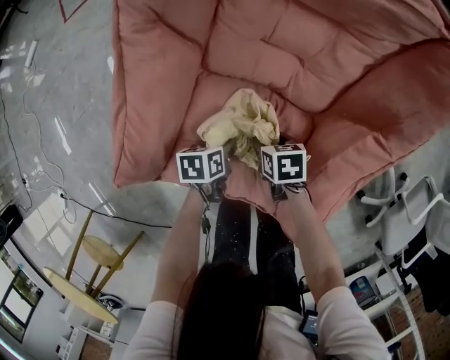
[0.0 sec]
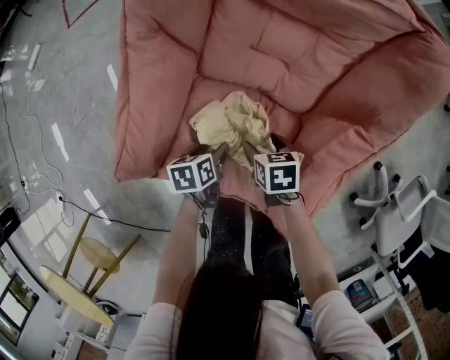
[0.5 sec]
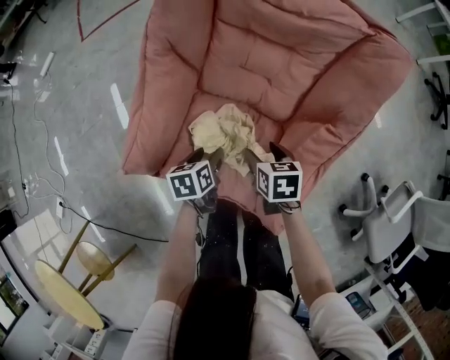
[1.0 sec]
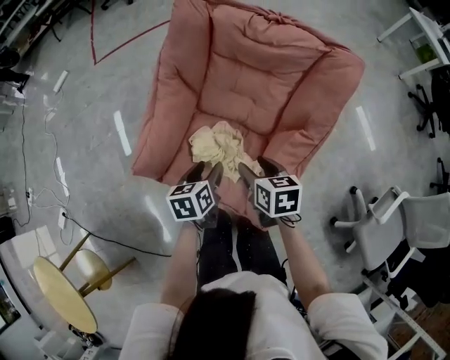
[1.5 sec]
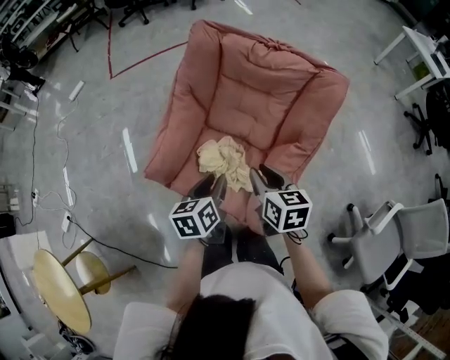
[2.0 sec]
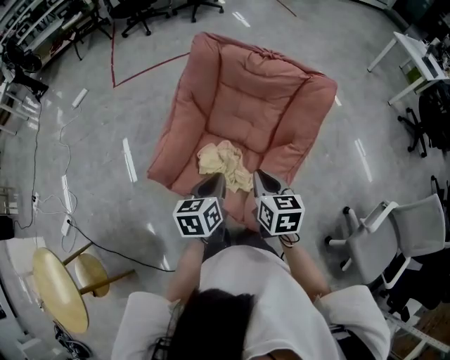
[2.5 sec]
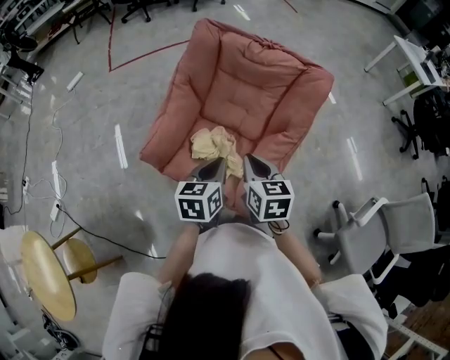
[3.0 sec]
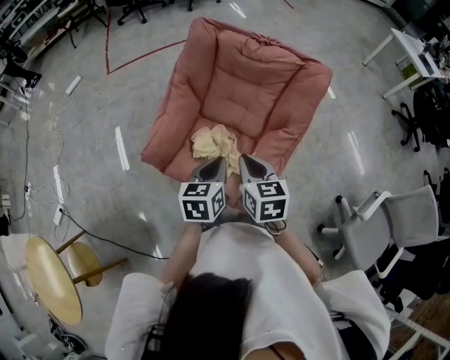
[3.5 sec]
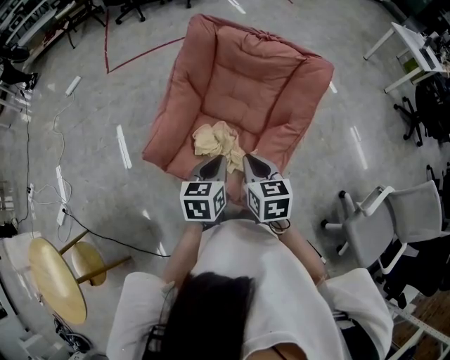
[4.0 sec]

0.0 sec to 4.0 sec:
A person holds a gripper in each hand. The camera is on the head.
0.0 sec to 2.0 sec: The grippers both shift upward by roughly 40 cm. The right gripper tips its fingers upward by some 30 degrees; the left gripper turns by approximately 40 degrees, and opens and closes again.
2.0 sec to 4.0 sec: The right gripper goes roughly 5 cm backward, while the left gripper shifts by about 5 cm, and closes.

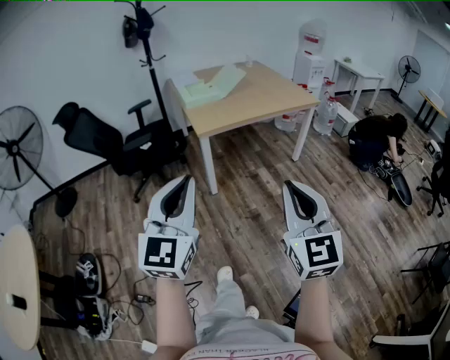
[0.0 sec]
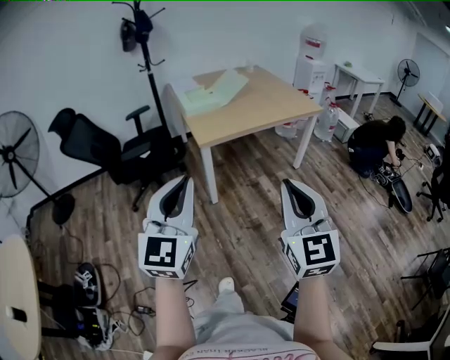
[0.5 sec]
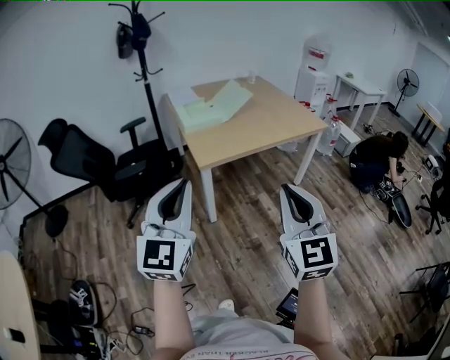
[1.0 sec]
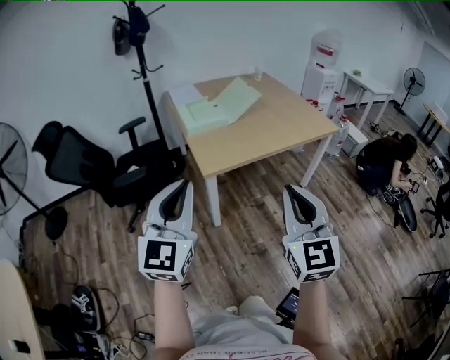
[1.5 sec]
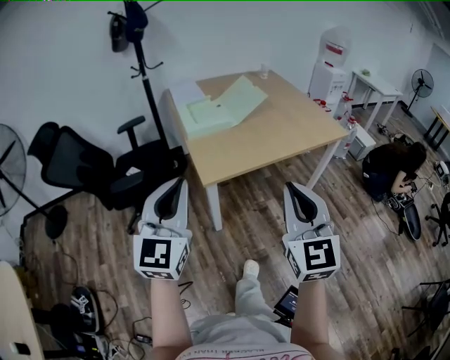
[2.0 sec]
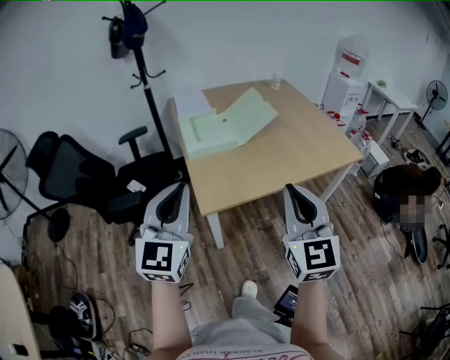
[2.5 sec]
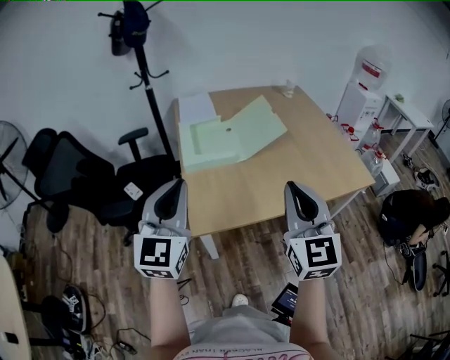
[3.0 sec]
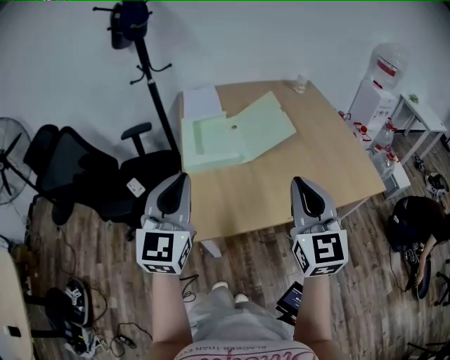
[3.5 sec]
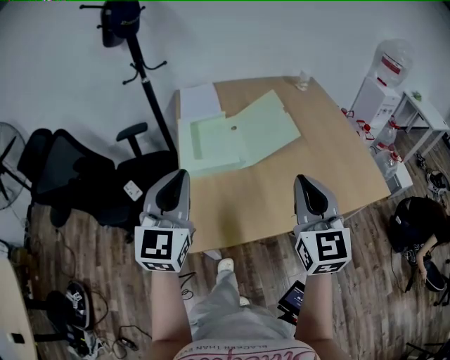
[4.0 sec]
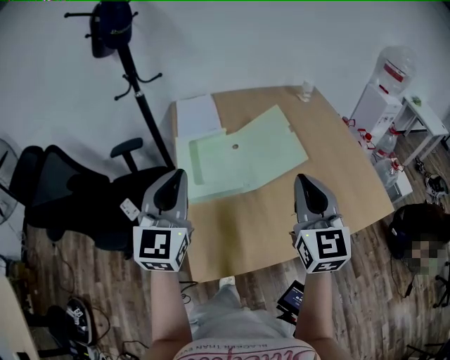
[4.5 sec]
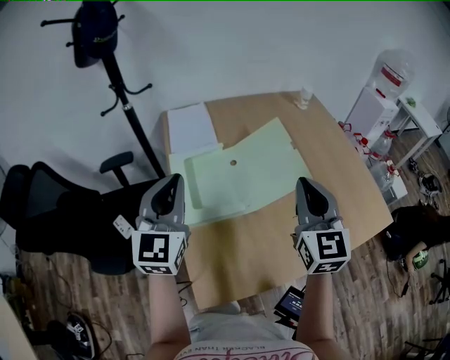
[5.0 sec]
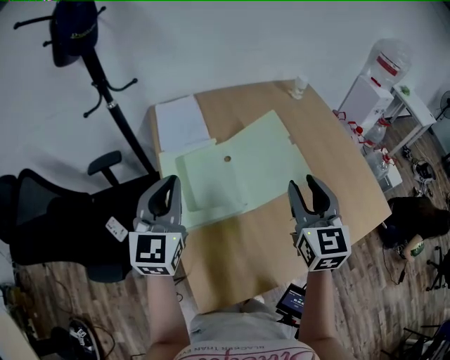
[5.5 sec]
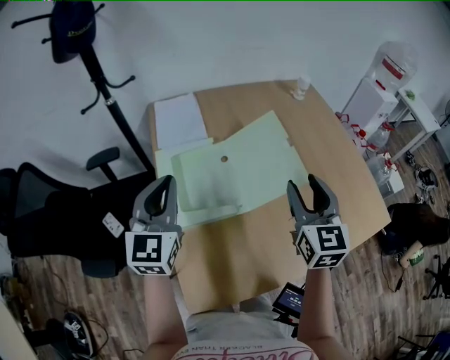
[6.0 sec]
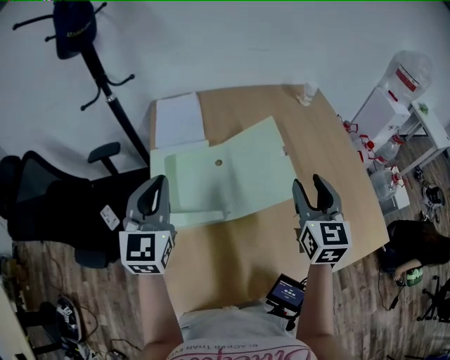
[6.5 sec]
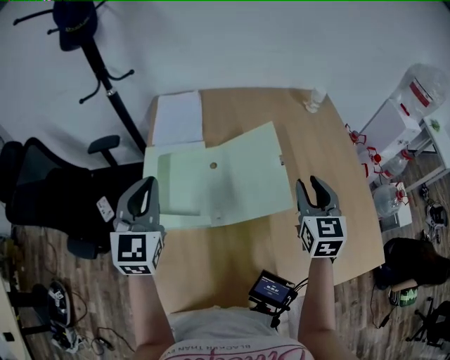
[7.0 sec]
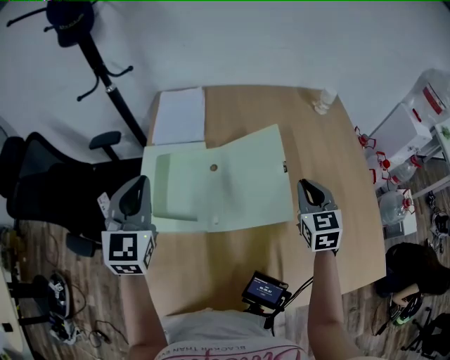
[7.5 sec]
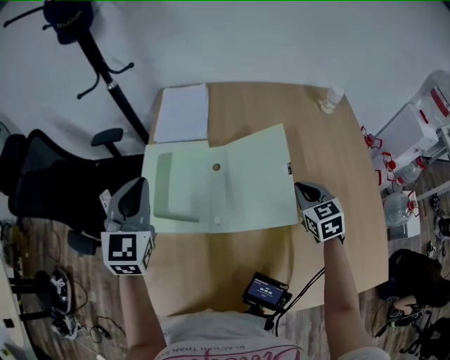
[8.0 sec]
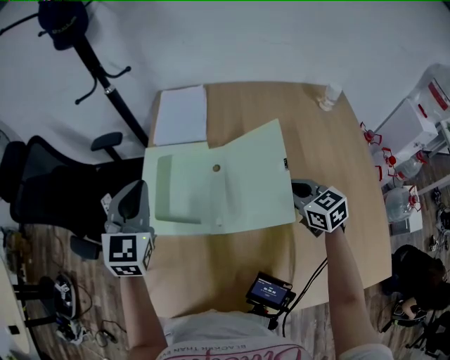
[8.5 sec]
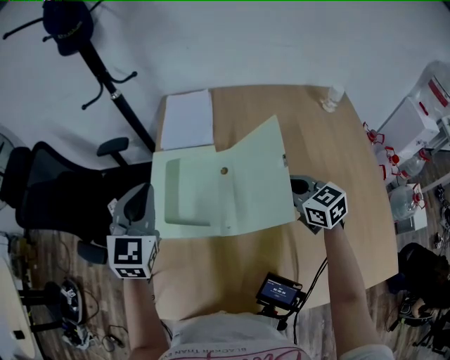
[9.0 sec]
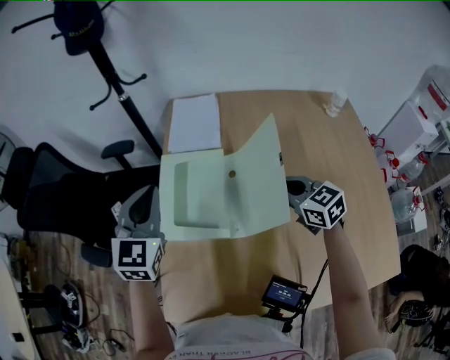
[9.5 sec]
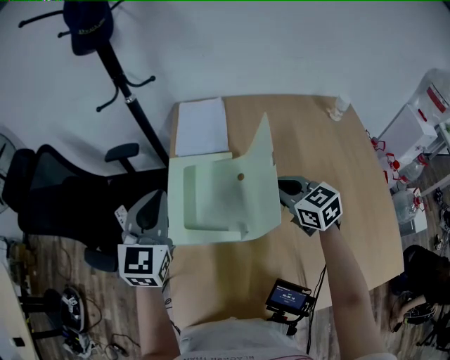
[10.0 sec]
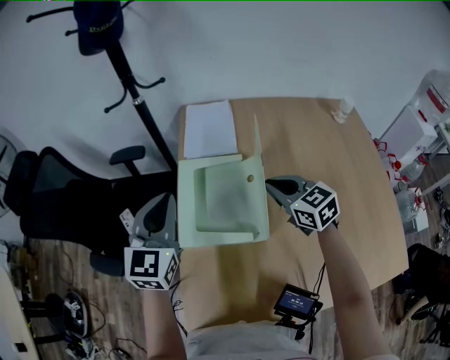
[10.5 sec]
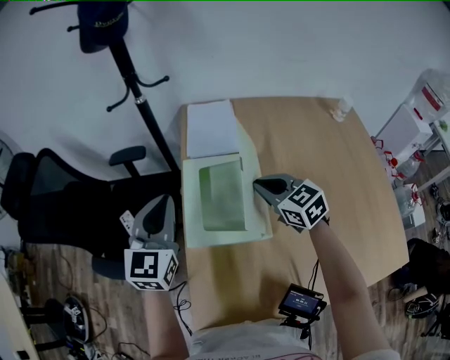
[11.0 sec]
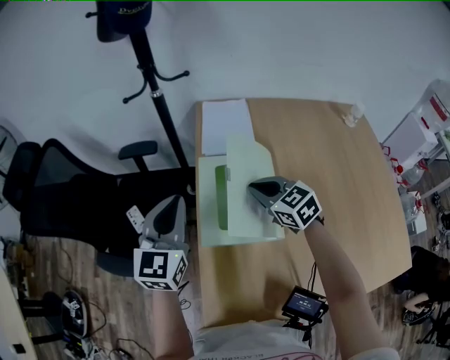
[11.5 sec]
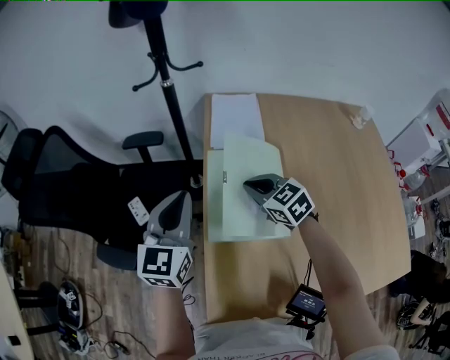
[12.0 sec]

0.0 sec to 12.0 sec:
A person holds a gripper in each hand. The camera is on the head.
0.0 sec to 2.0 sec: Both grippers travel together forward, approximately 35 cm.
2.0 sec to 4.0 sec: The grippers both shift forward by about 35 cm.
4.0 sec to 6.0 sec: Both grippers move forward, roughly 20 cm. The right gripper opens.
6.0 sec to 8.0 sec: The right gripper moves downward, forward and to the right, roughly 25 cm, rotates about 40 degrees, and closes its fingers, while the left gripper ends up about 5 cm from where it was, and swivels approximately 20 degrees.
8.0 sec to 10.0 sec: The right gripper shifts roughly 15 cm to the left, and swivels roughly 20 degrees.
10.0 sec to 12.0 sec: The left gripper is displaced to the left by about 10 cm, while the right gripper heads to the left, covering some 20 cm.

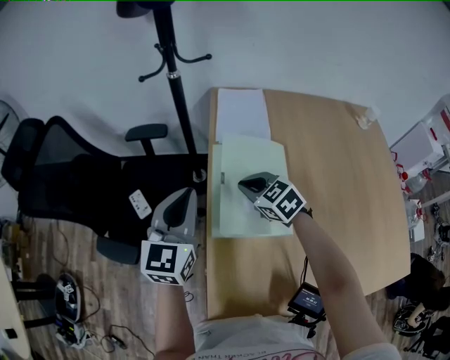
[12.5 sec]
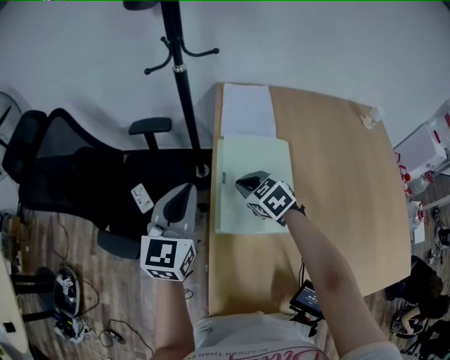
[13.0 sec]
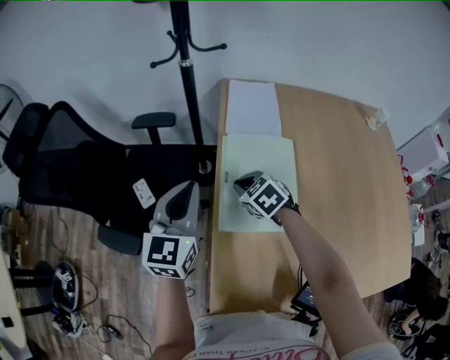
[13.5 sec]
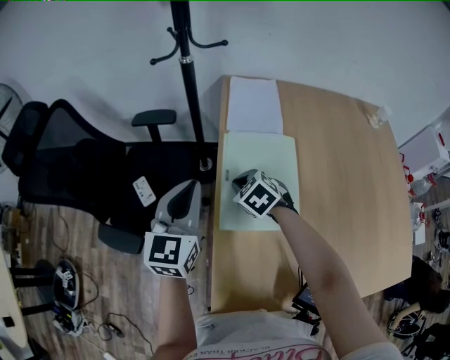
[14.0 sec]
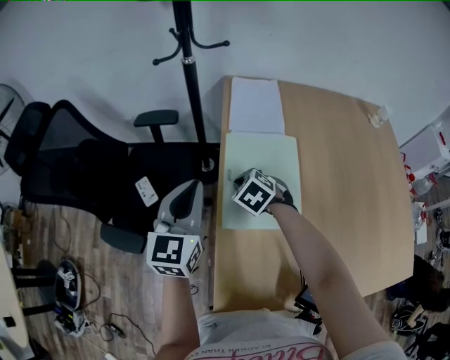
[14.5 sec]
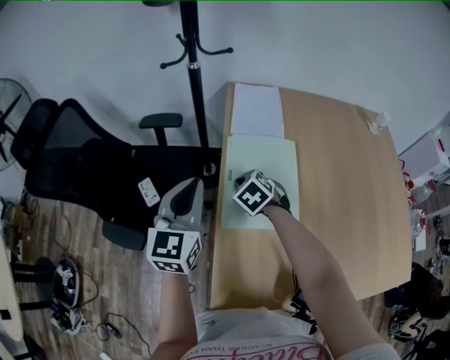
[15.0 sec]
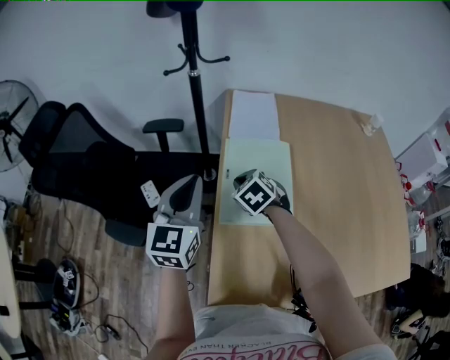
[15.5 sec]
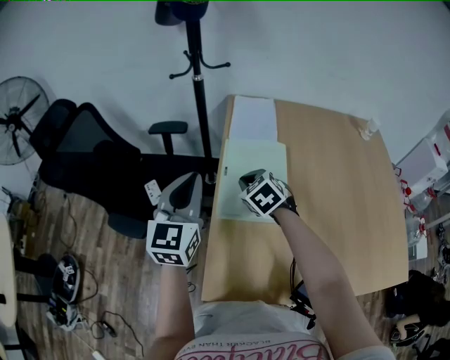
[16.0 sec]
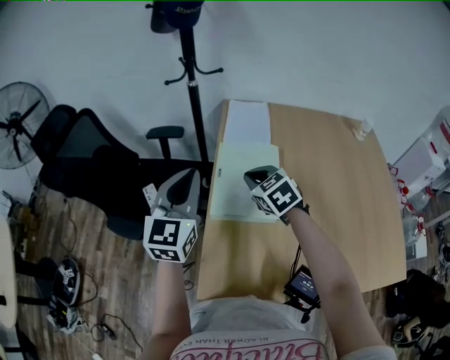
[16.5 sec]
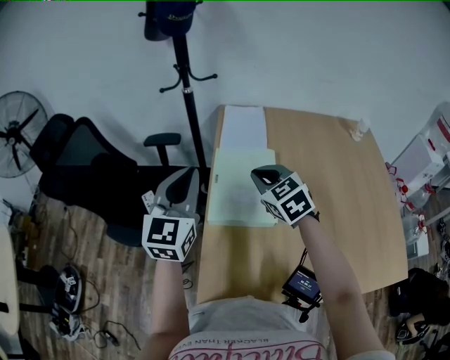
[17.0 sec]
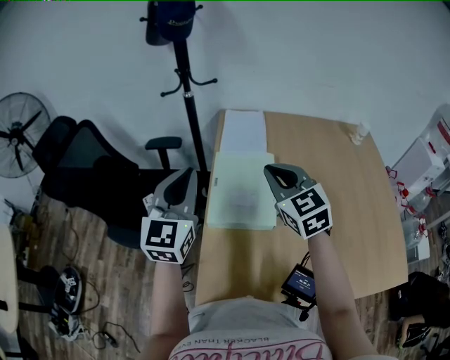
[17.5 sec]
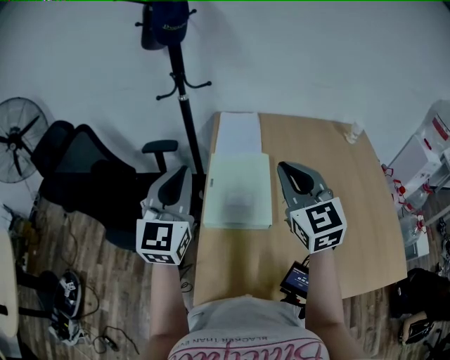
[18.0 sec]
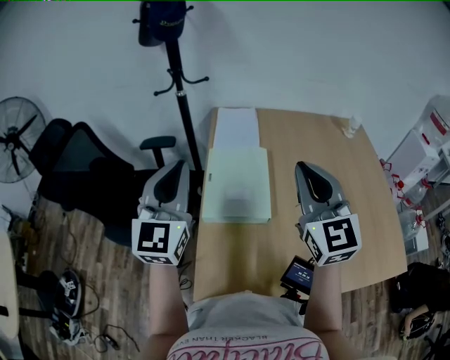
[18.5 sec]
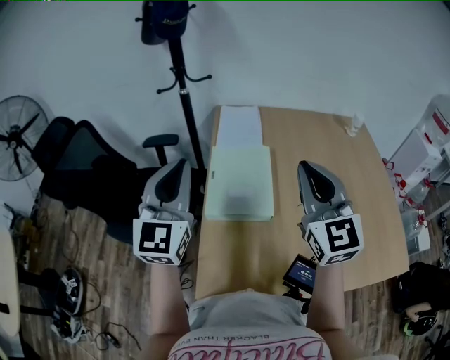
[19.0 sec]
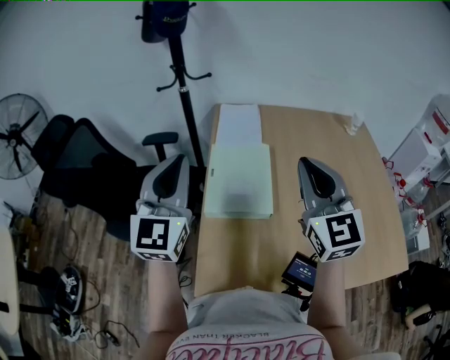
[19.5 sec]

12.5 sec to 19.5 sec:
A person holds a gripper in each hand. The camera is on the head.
12.5 sec to 14.5 sec: The right gripper travels downward and to the left by about 10 cm, and rotates some 20 degrees.
14.5 sec to 16.0 sec: The right gripper shifts about 10 cm upward and backward. Meanwhile the left gripper is displaced backward and upward by about 10 cm.
16.0 sec to 17.5 sec: The right gripper moves upward and to the right, about 20 cm, and tilts its fingers some 30 degrees upward; the left gripper goes roughly 5 cm upward.
17.5 sec to 19.5 sec: The right gripper travels backward, upward and to the right by roughly 15 cm, and rotates some 20 degrees; the left gripper shifts by approximately 5 cm.

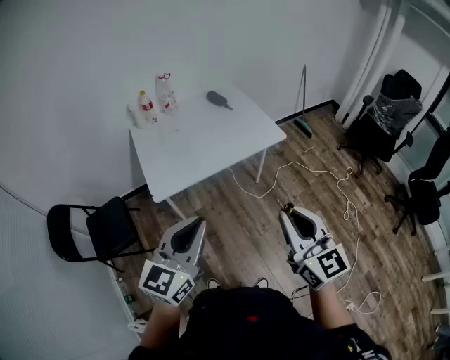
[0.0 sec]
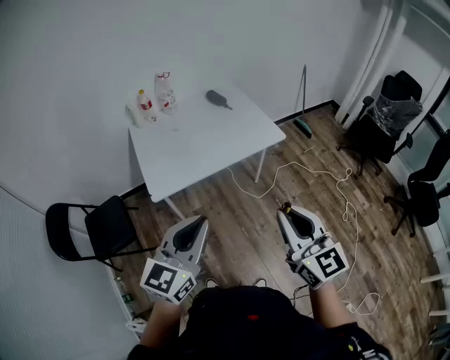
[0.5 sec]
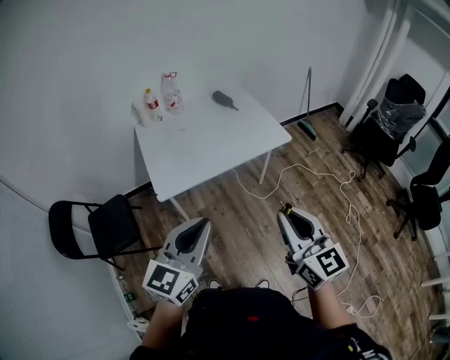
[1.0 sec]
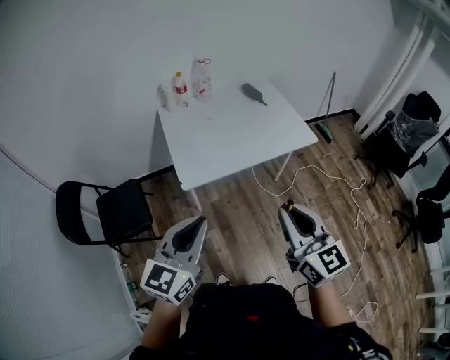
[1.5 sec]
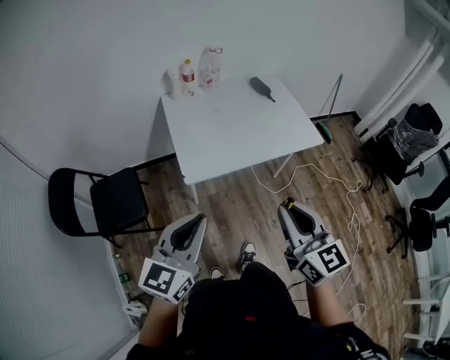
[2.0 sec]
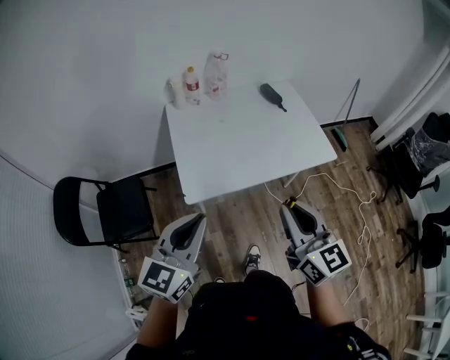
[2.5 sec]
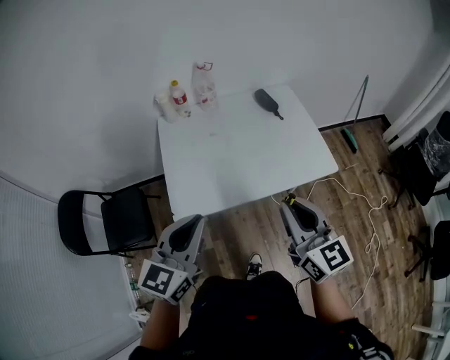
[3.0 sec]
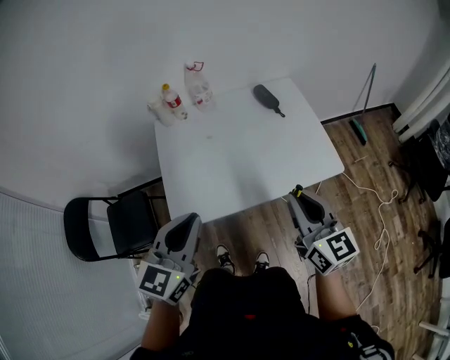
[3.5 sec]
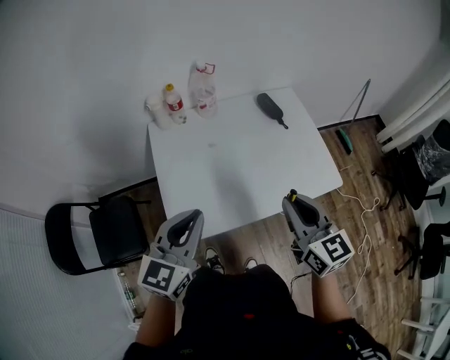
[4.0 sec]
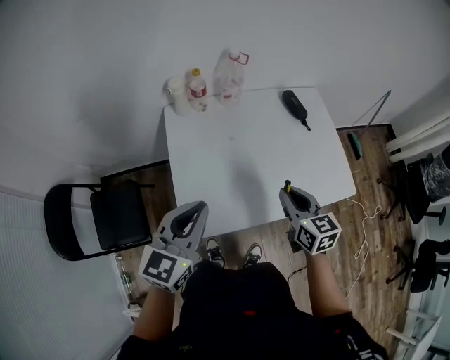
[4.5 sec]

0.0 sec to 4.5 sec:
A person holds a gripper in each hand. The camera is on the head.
0.0 sec to 2.0 sec: Both grippers travel together to the left, roughly 20 cm.
2.0 sec to 4.5 sec: The grippers both shift forward by some 40 cm. The right gripper rotates about 20 degrees.
